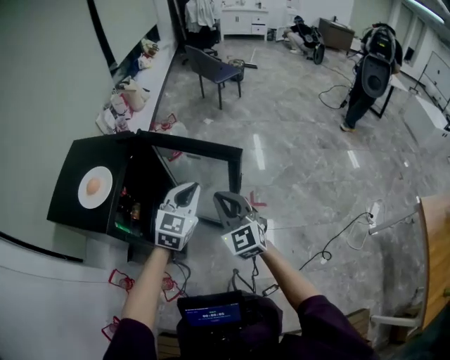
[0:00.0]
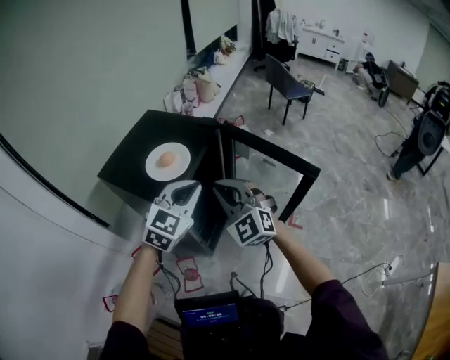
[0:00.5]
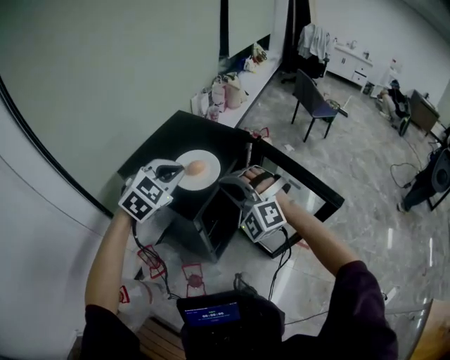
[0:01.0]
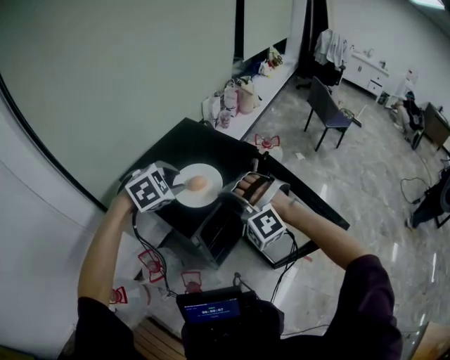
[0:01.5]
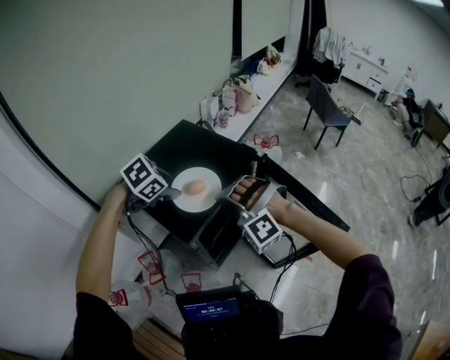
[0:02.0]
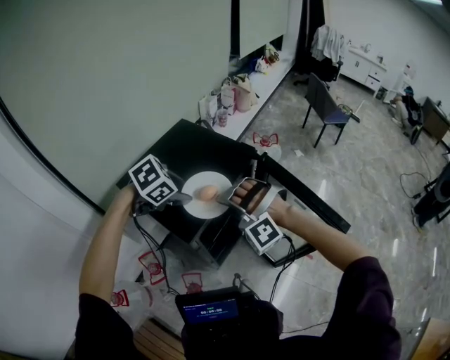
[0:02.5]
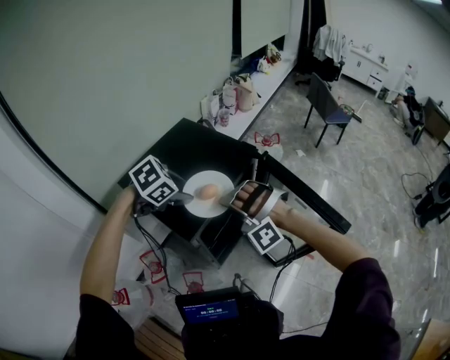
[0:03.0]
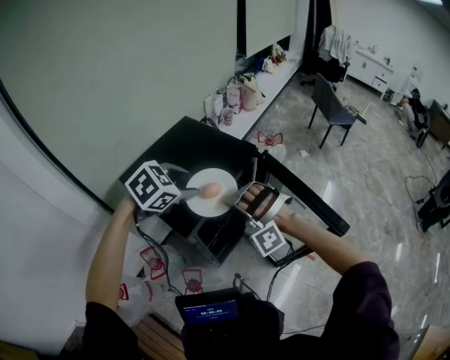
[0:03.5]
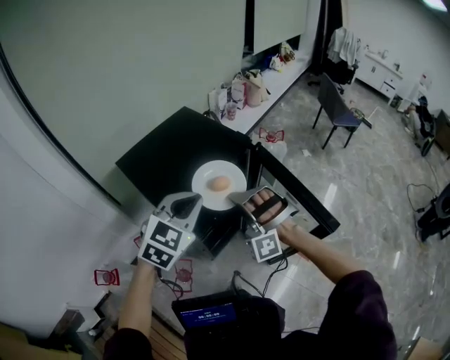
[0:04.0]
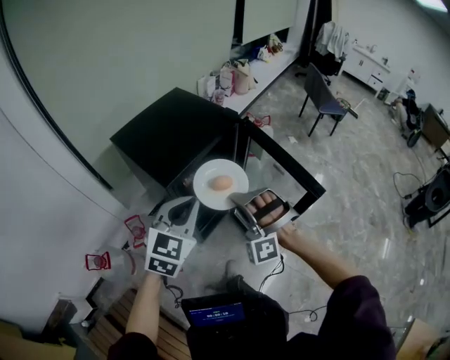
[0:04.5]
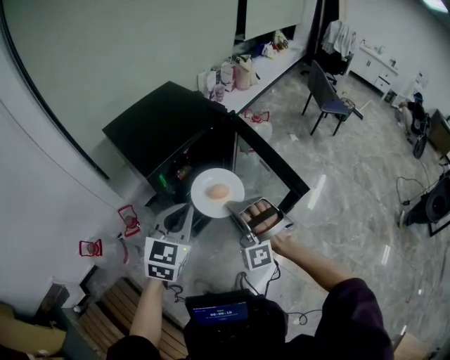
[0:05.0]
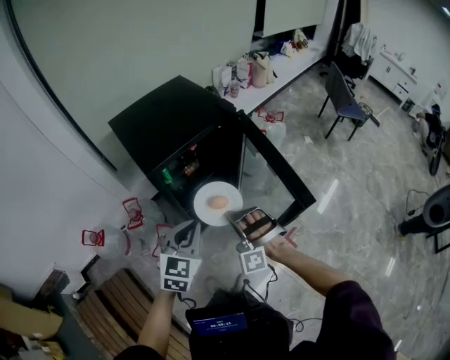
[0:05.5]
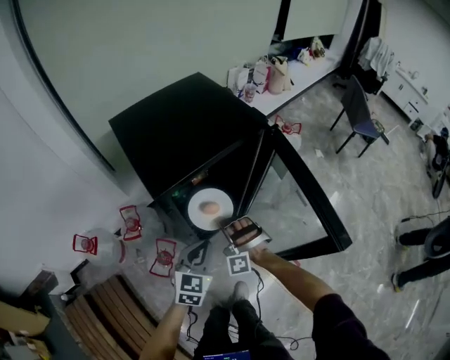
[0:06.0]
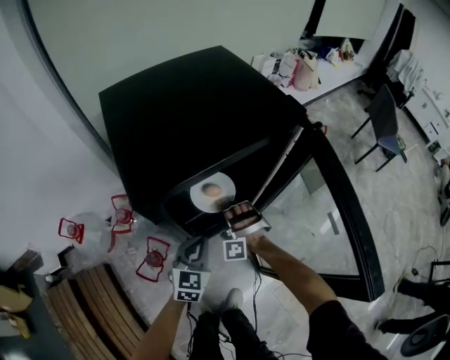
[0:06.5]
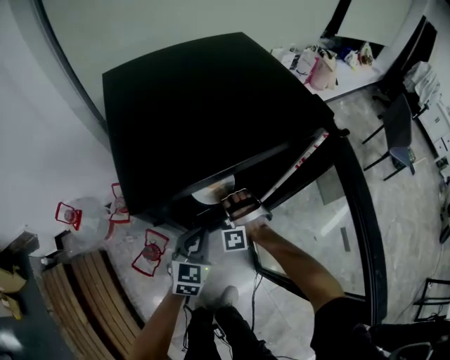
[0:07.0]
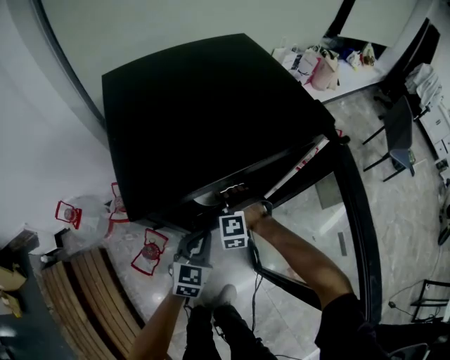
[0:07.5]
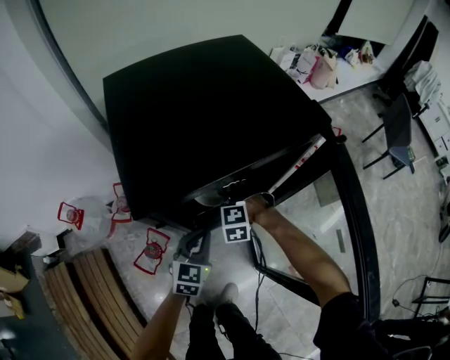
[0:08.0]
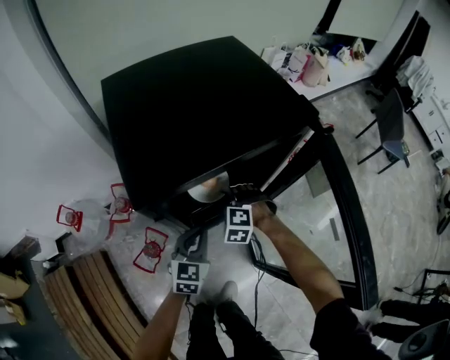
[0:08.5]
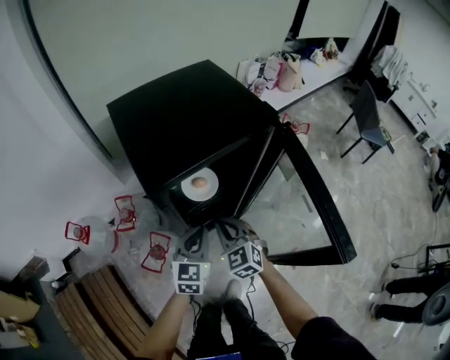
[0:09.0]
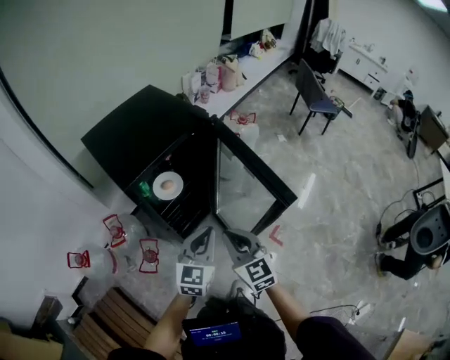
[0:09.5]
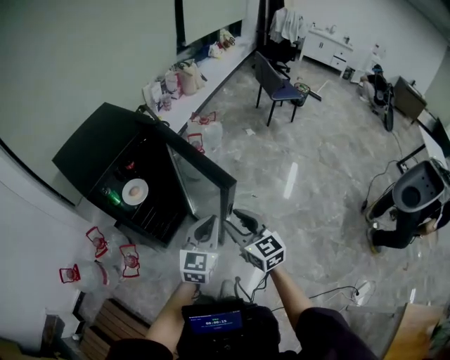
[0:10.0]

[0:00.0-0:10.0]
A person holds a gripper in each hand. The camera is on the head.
0:00.0 to 0:02.0: The right gripper moves about 30 cm, twists about 80 degrees counterclockwise, seen from behind, and opens up, while the left gripper ends up roughly 40 cm from where it was, angles its fingers downward, by about 50 degrees, and opens.
0:02.0 to 0:04.0: The left gripper shifts about 20 cm to the right, backward and upward, tilts its fingers roughly 40 degrees upward, and closes up. The right gripper moves to the right, roughly 5 cm, and turns by approximately 30 degrees.
0:04.0 to 0:06.0: Both grippers move downward, about 25 cm. The left gripper rotates approximately 30 degrees.
0:06.0 to 0:08.0: Both grippers move downward and forward, some 20 cm. The right gripper points its fingers approximately 40 degrees further downward, and opens up.
0:08.0 to 0:10.0: The right gripper changes place by approximately 60 cm, rolls clockwise, seen from behind, by some 90 degrees, and closes and opens again; the left gripper ends up roughly 40 cm from where it was, and changes its angle by about 40 degrees.

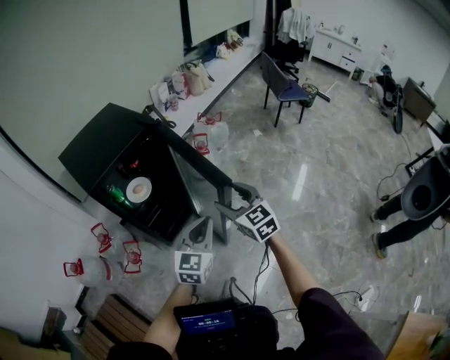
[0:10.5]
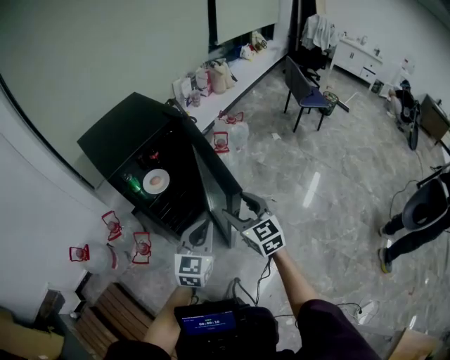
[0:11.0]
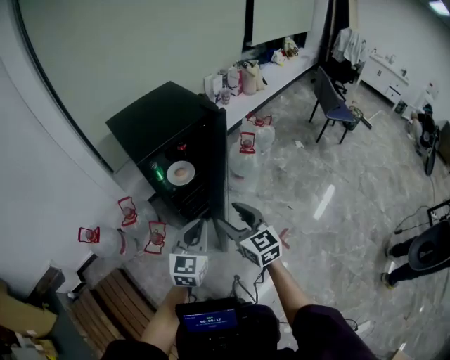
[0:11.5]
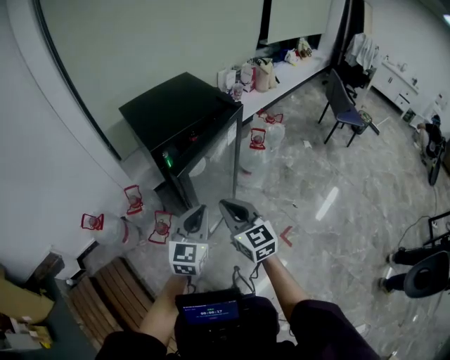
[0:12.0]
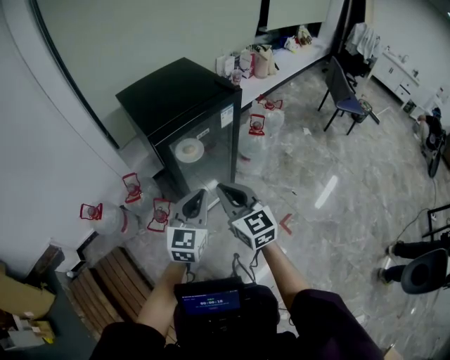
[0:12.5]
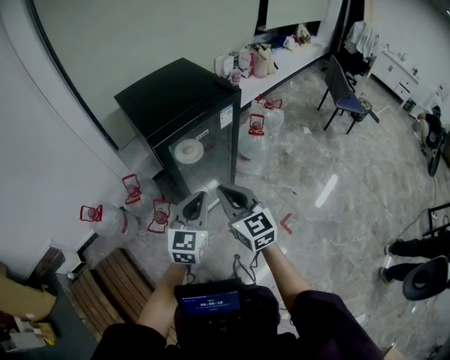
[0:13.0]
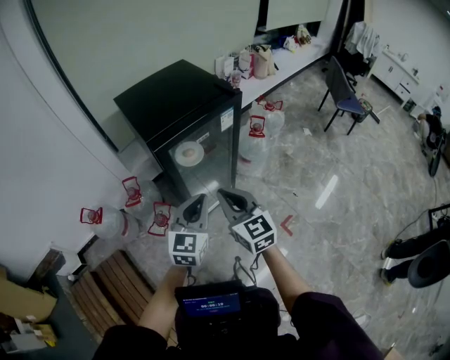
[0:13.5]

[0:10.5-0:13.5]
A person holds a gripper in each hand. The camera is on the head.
0:10.5 to 0:12.0: Both grippers travel together to the left, approximately 20 cm. The right gripper closes.
0:12.0 to 0:13.5: There are only small adjustments of the grippers.

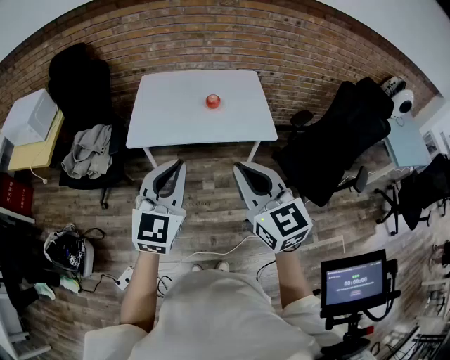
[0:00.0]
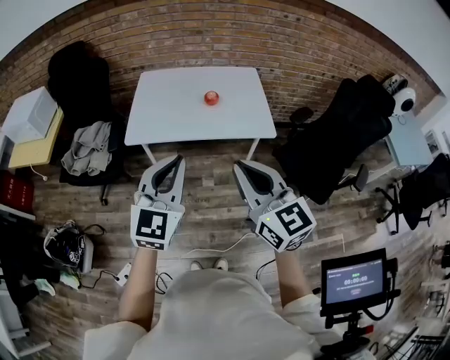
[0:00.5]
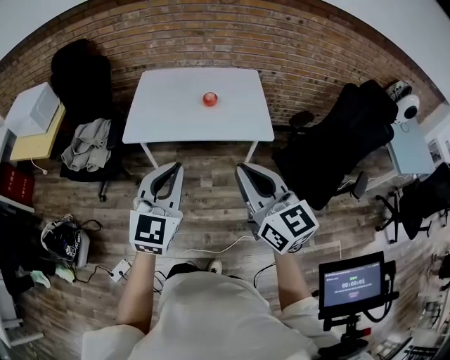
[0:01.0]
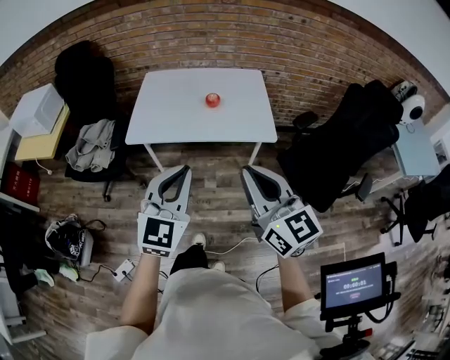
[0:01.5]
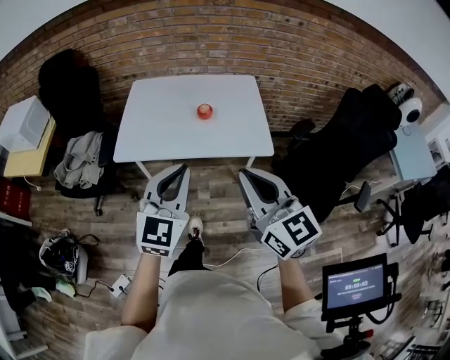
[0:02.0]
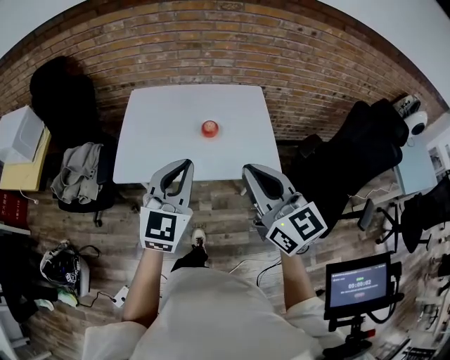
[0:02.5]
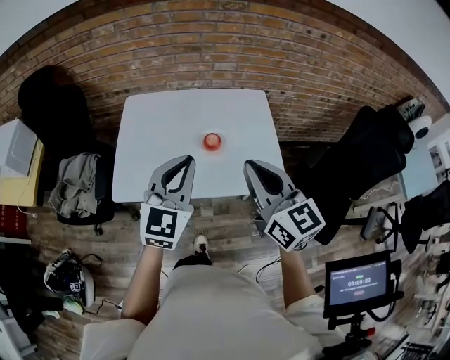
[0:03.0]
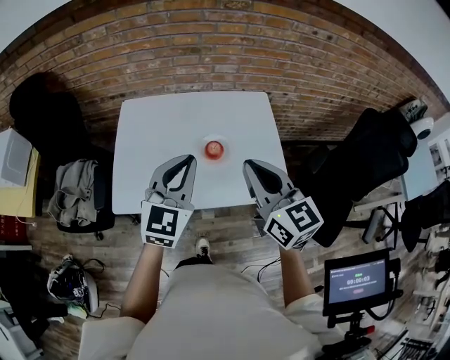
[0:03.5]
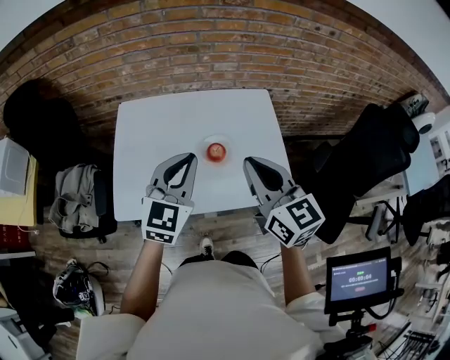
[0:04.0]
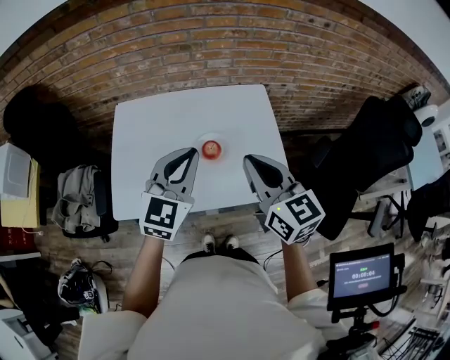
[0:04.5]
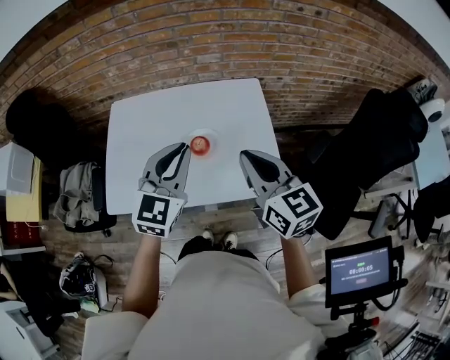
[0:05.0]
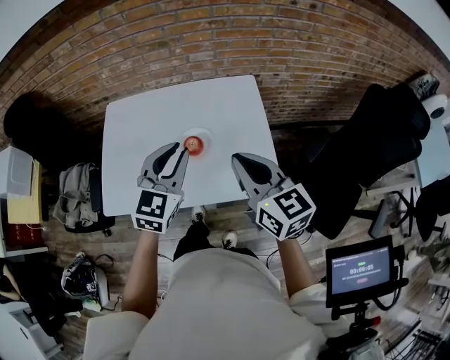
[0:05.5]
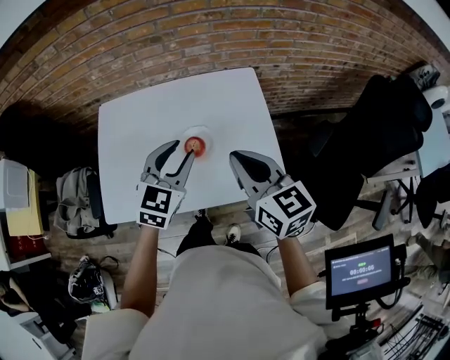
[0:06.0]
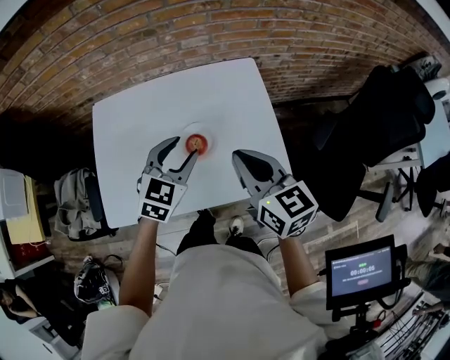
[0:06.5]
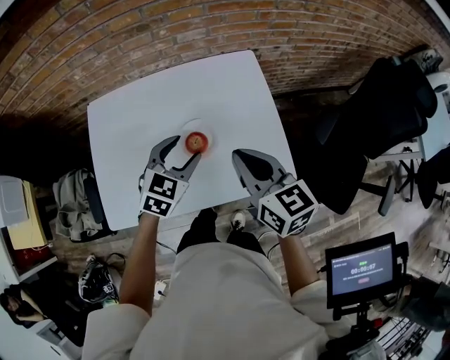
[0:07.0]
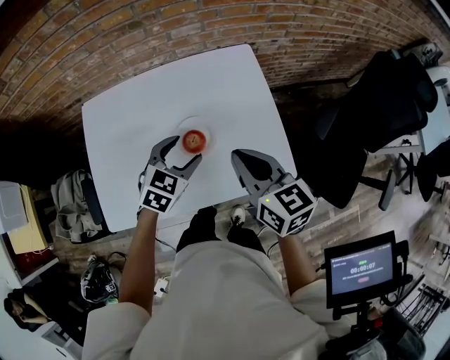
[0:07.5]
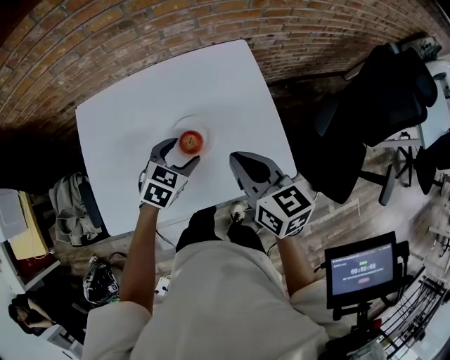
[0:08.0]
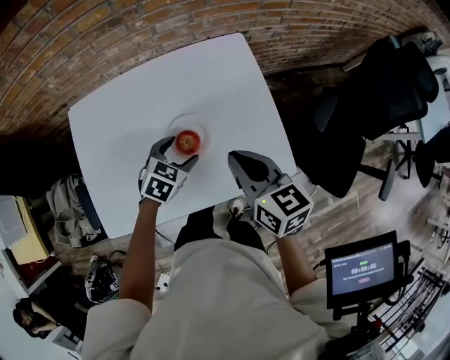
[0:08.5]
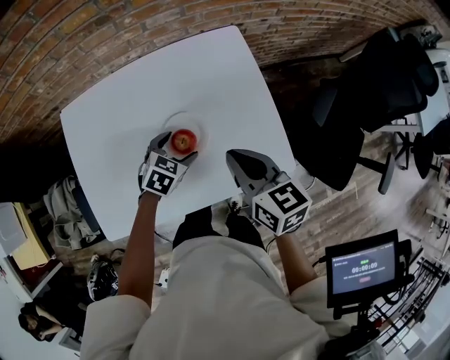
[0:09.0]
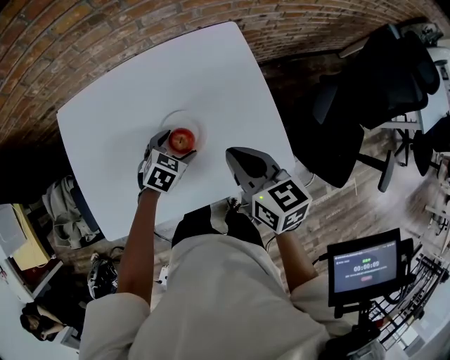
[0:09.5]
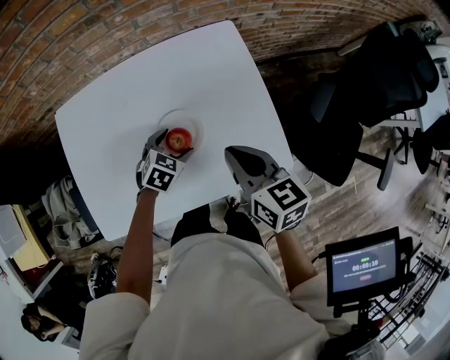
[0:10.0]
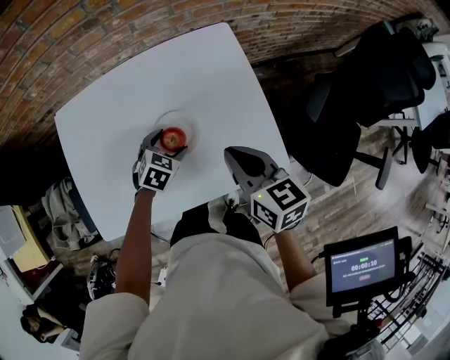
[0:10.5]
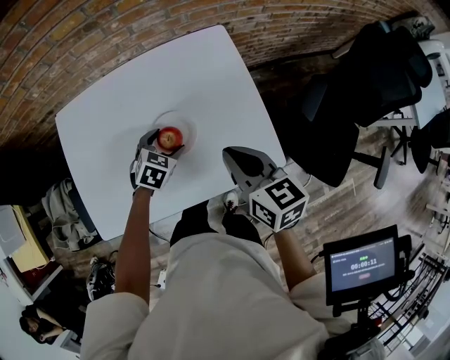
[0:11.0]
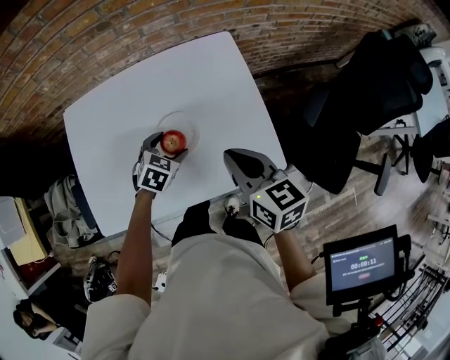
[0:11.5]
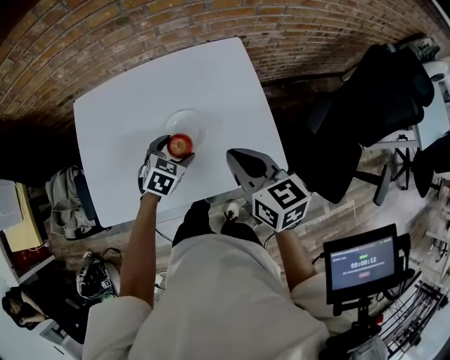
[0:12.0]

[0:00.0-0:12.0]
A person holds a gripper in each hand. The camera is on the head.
0:00.0 to 0:02.0: The left gripper heads forward and to the right, covering roughly 10 cm, while the right gripper moves to the right and forward, about 10 cm.
0:02.0 to 0:04.0: The two grippers go roughly 35 cm forward.
0:04.0 to 0:06.0: The right gripper heads to the right and downward, covering about 10 cm. Meanwhile the left gripper is displaced to the right, downward and forward by about 10 cm.
0:06.0 to 0:08.0: The left gripper heads downward, covering about 15 cm, turns by about 30 degrees, and opens; the right gripper heads downward, covering approximately 10 cm.
0:08.0 to 0:10.0: The right gripper shifts by roughly 5 cm, while the left gripper is displaced downward by roughly 10 cm.
0:10.0 to 0:12.0: The right gripper ends up roughly 5 cm from where it was. Meanwhile the left gripper shifts some 5 cm upward.

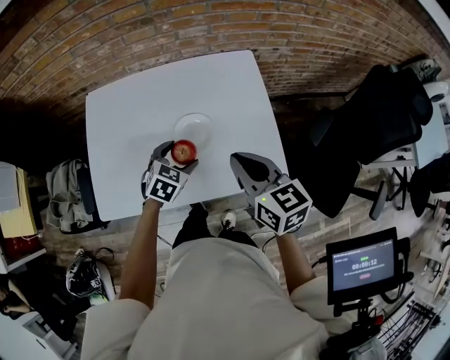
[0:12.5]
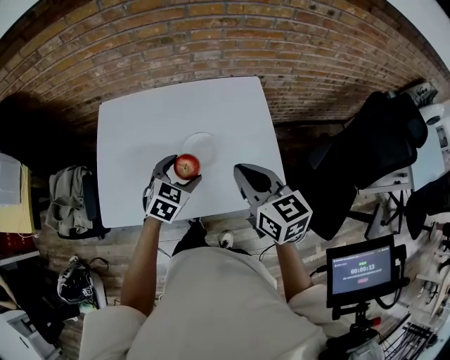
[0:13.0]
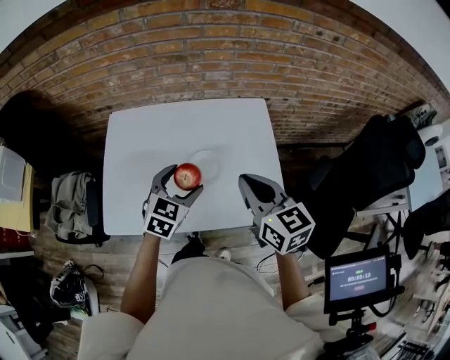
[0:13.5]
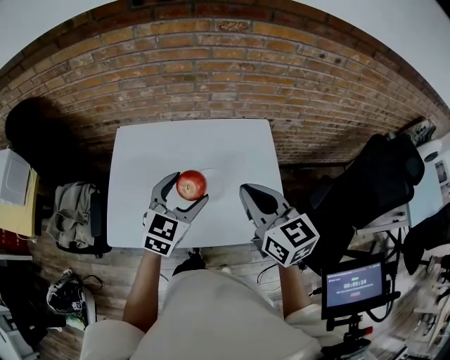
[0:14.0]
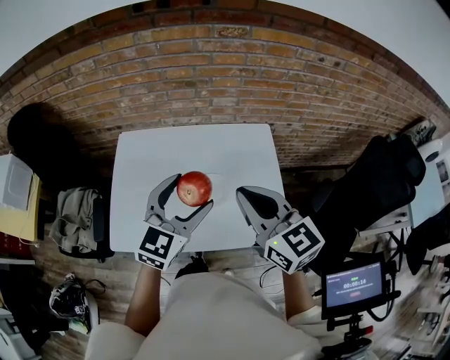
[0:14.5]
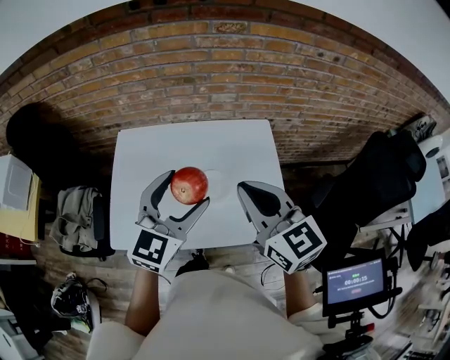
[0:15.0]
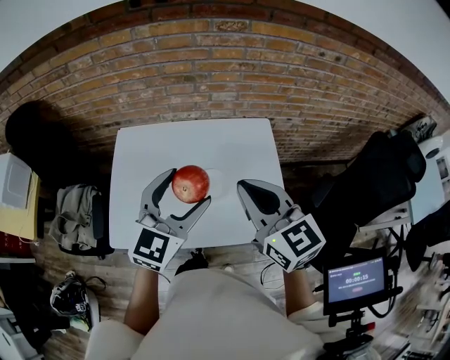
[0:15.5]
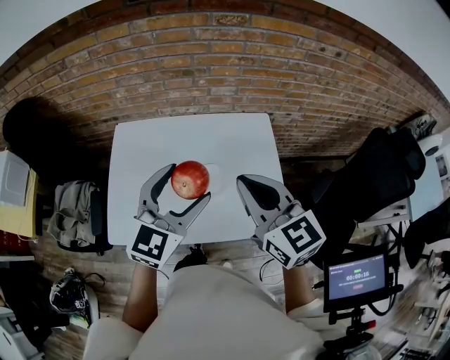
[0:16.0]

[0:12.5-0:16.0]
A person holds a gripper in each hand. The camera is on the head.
0:12.5 to 0:14.5: The left gripper is displaced upward by approximately 25 cm, and points its fingers about 40 degrees further upward. Meanwhile the right gripper is displaced upward by approximately 15 cm, and rotates approximately 20 degrees.
0:14.5 to 0:16.0: The grippers make only small movements.
